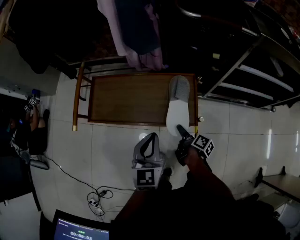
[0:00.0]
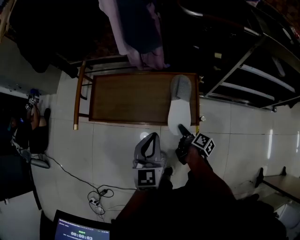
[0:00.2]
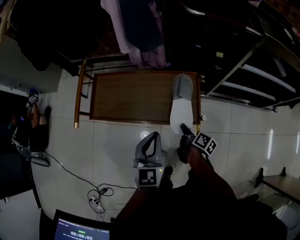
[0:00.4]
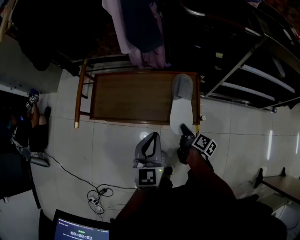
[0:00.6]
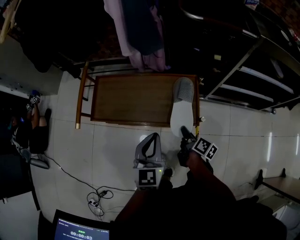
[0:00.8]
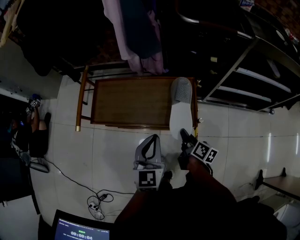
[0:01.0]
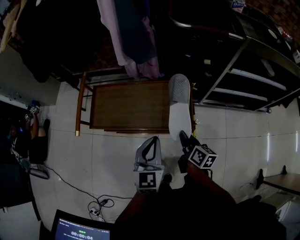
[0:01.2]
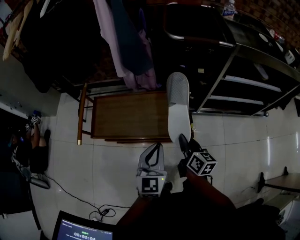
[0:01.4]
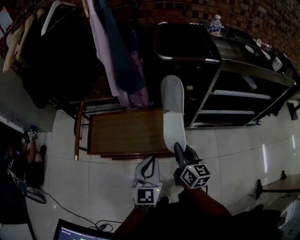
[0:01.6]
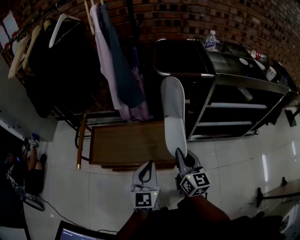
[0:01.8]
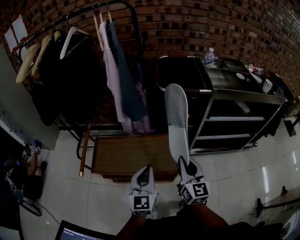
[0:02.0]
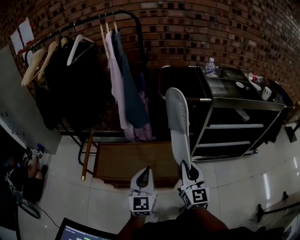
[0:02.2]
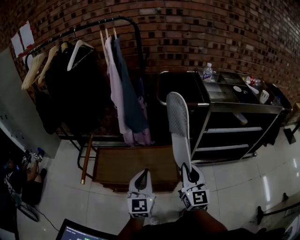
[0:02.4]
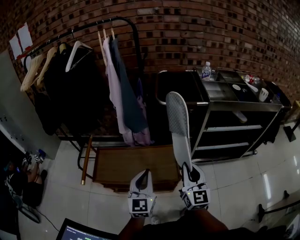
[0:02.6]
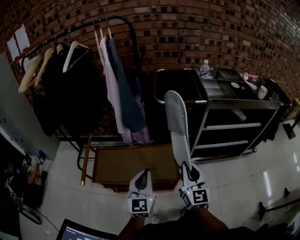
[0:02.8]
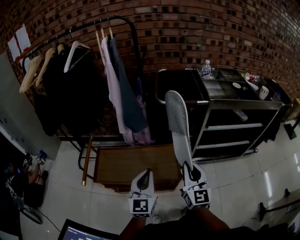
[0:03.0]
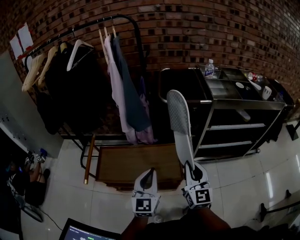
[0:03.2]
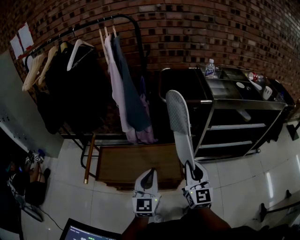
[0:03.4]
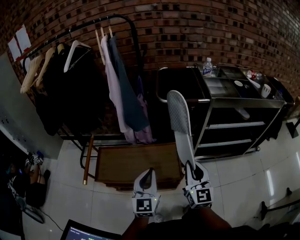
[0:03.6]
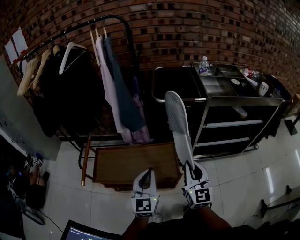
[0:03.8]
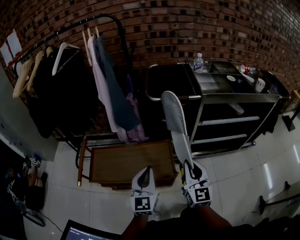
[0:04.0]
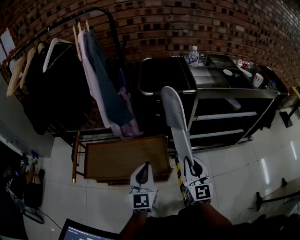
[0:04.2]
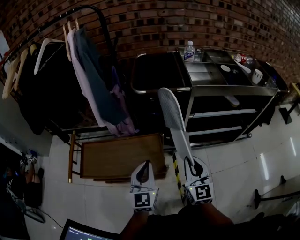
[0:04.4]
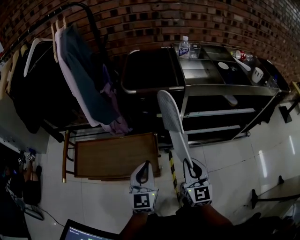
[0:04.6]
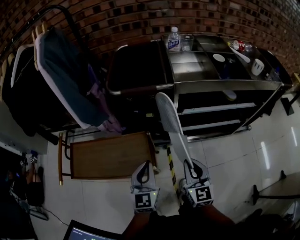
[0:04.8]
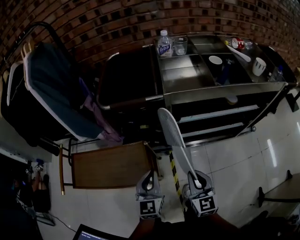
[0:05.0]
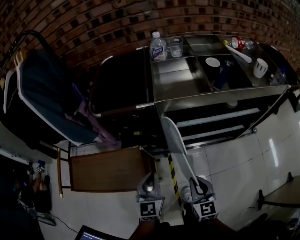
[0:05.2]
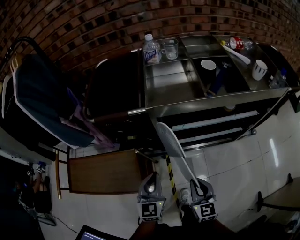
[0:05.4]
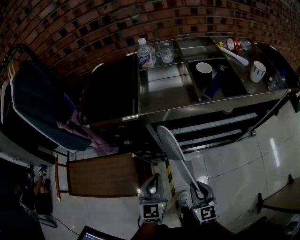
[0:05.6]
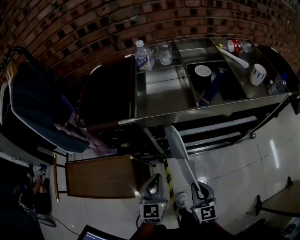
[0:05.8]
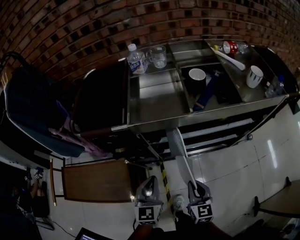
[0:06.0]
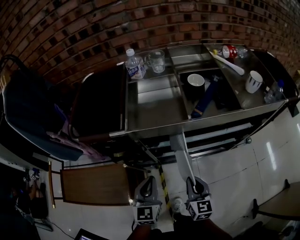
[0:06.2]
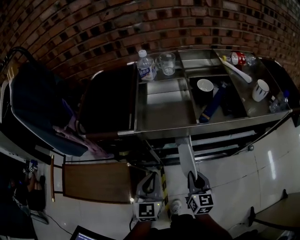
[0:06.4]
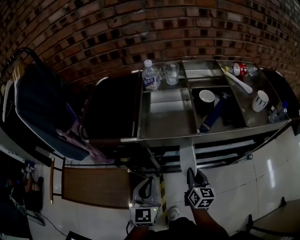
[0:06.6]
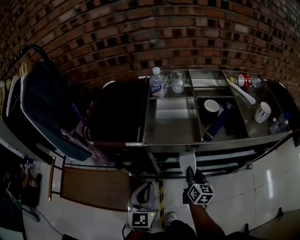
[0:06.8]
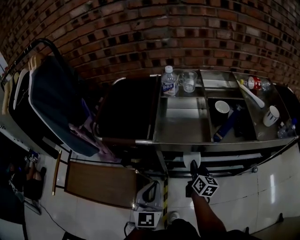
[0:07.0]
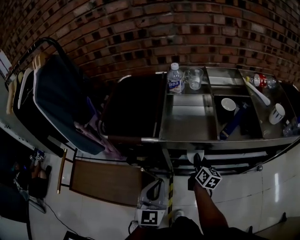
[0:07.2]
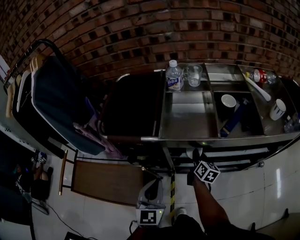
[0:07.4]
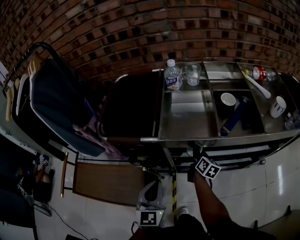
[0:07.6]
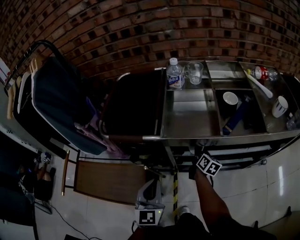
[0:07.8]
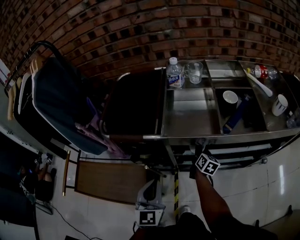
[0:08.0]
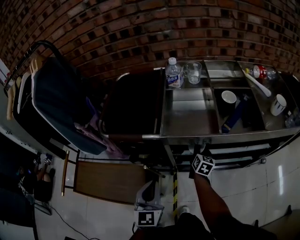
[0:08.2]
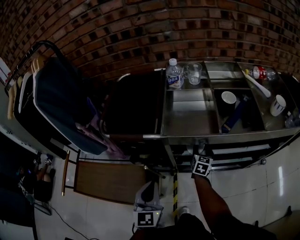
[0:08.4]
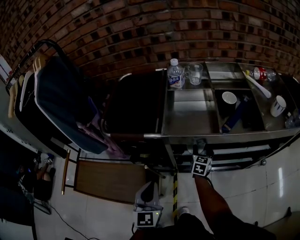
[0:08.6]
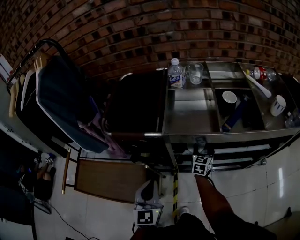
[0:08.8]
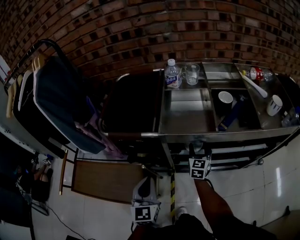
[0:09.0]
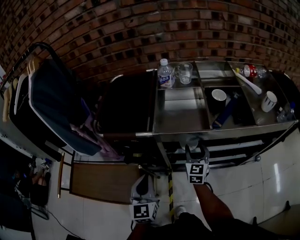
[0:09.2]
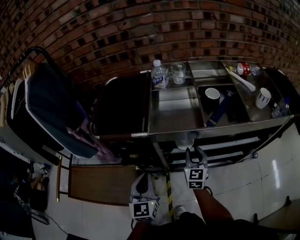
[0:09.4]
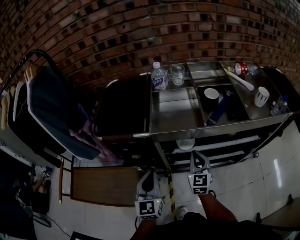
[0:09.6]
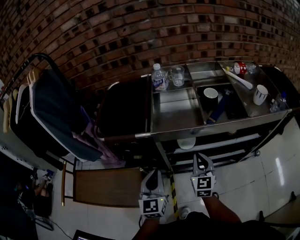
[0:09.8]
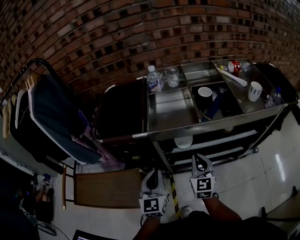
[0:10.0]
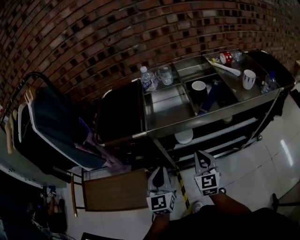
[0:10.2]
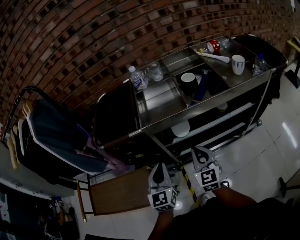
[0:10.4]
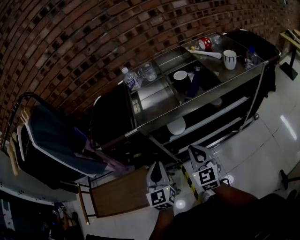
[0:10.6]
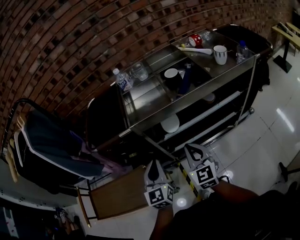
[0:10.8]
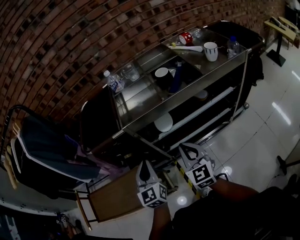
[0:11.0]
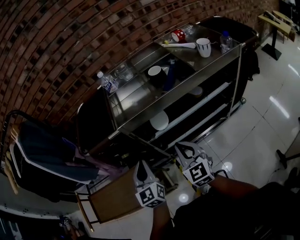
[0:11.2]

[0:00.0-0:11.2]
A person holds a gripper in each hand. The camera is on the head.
0:00.0 to 0:01.6: The left gripper shifts some 5 cm upward. Meanwhile the right gripper is displaced upward by some 25 cm, twists about 50 degrees counterclockwise, seen from behind, and closes its fingers.
0:01.6 to 0:03.2: The right gripper shifts some 15 cm upward, and swivels roughly 30 degrees; the left gripper goes some 10 cm upward.
0:03.2 to 0:04.8: The left gripper moves to the right and forward, about 20 cm, while the right gripper heads to the right and downward, covering approximately 20 cm.
0:04.8 to 0:06.4: The right gripper goes about 25 cm to the right, forward and downward, and swivels some 20 degrees, while the left gripper goes roughly 25 cm to the right and forward.
0:06.4 to 0:08.0: The right gripper is displaced forward by approximately 20 cm, and swivels approximately 20 degrees, while the left gripper heads to the left, covering roughly 5 cm.
0:08.0 to 0:09.6: The right gripper goes roughly 15 cm upward and backward, rotates around the line of its fingers by some 40 degrees, counterclockwise from behind, and opens and closes again.
0:09.6 to 0:11.2: The right gripper shifts roughly 15 cm backward and upward.

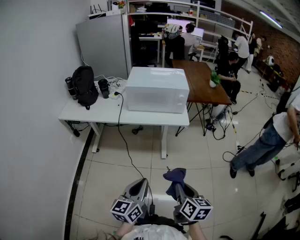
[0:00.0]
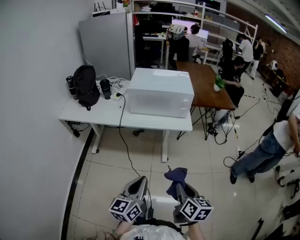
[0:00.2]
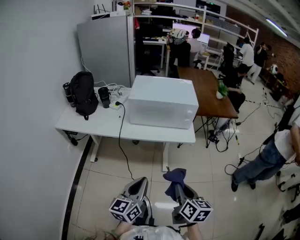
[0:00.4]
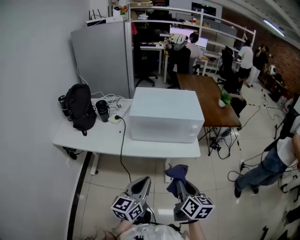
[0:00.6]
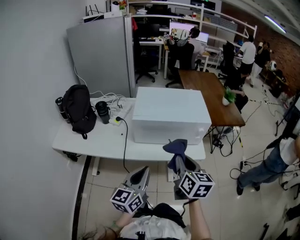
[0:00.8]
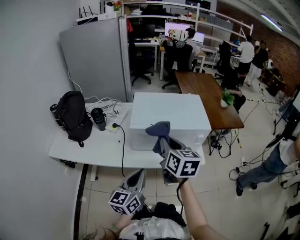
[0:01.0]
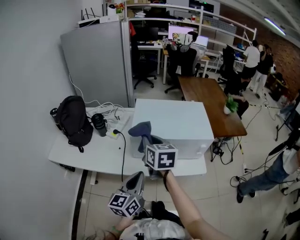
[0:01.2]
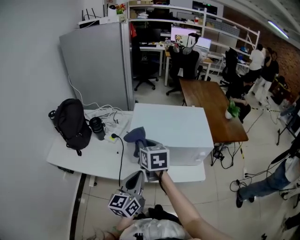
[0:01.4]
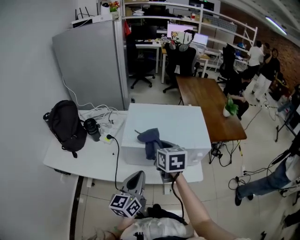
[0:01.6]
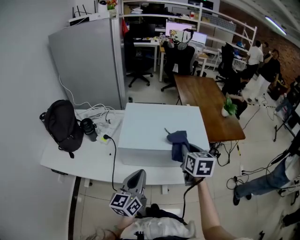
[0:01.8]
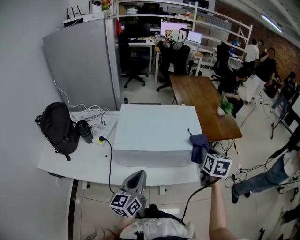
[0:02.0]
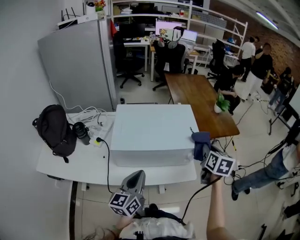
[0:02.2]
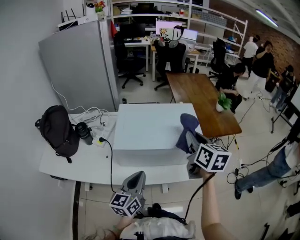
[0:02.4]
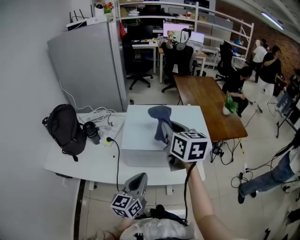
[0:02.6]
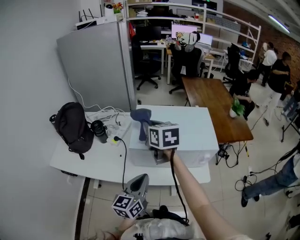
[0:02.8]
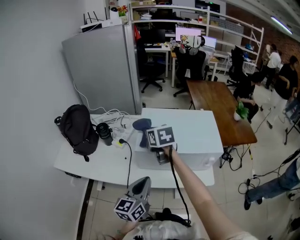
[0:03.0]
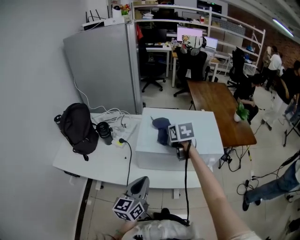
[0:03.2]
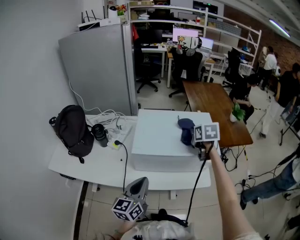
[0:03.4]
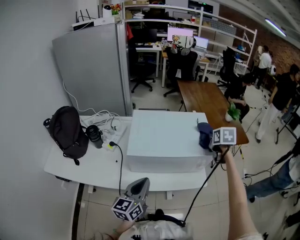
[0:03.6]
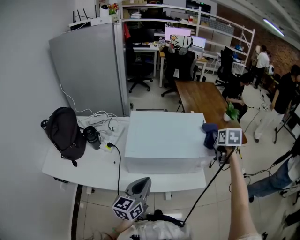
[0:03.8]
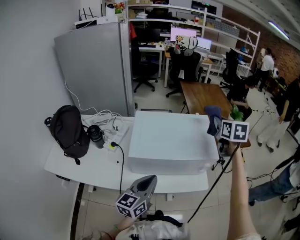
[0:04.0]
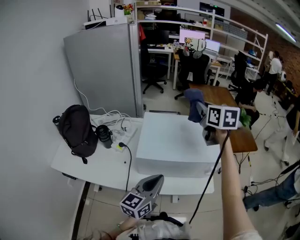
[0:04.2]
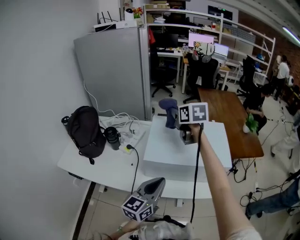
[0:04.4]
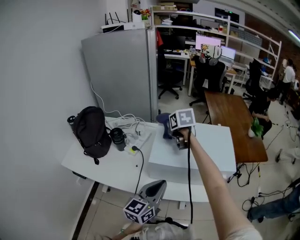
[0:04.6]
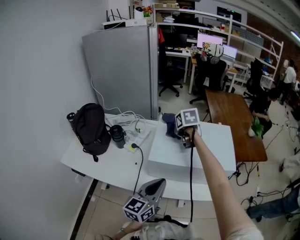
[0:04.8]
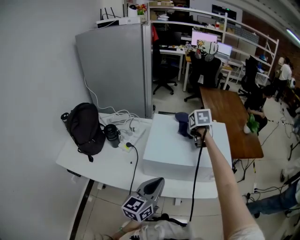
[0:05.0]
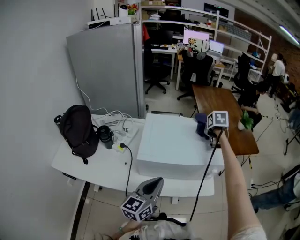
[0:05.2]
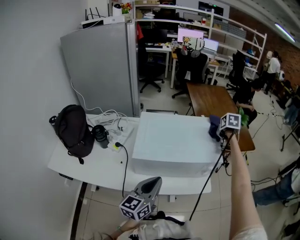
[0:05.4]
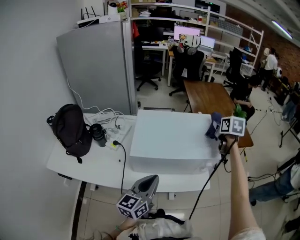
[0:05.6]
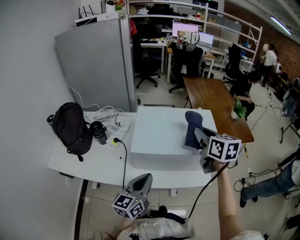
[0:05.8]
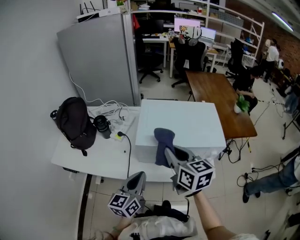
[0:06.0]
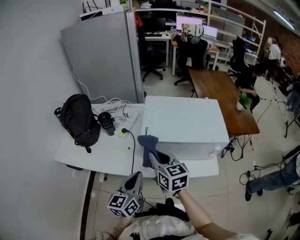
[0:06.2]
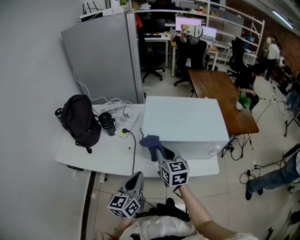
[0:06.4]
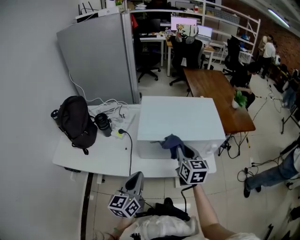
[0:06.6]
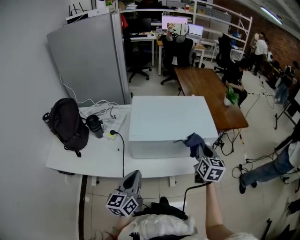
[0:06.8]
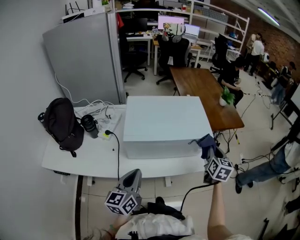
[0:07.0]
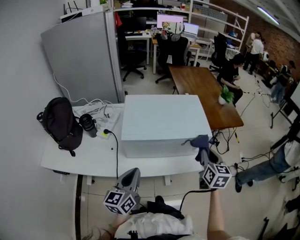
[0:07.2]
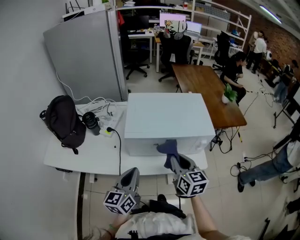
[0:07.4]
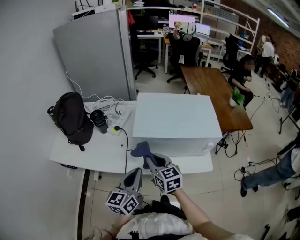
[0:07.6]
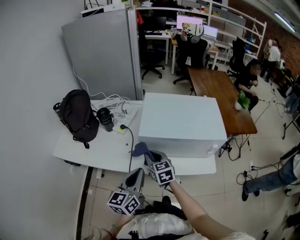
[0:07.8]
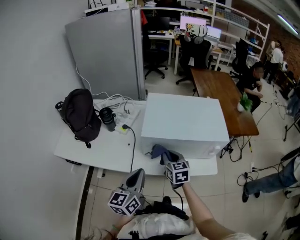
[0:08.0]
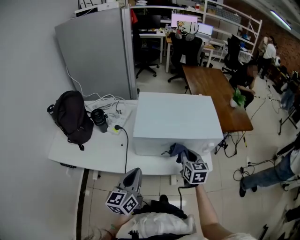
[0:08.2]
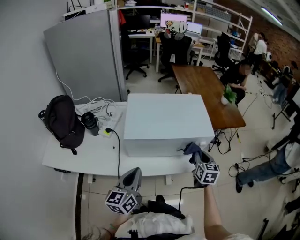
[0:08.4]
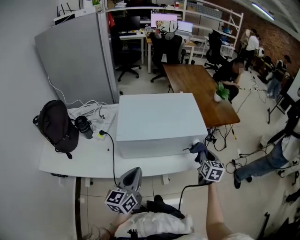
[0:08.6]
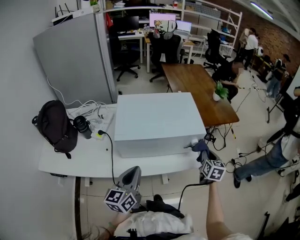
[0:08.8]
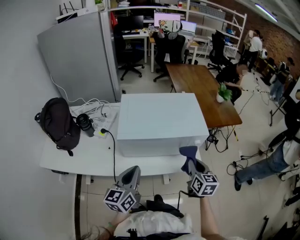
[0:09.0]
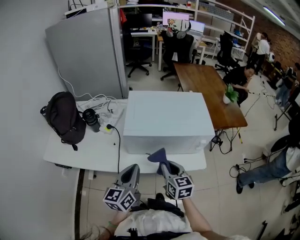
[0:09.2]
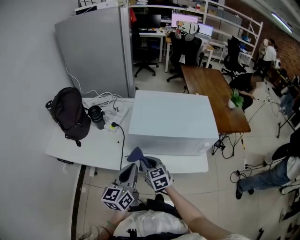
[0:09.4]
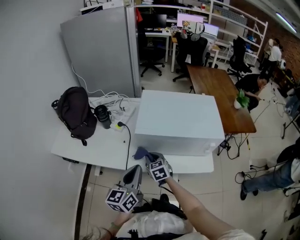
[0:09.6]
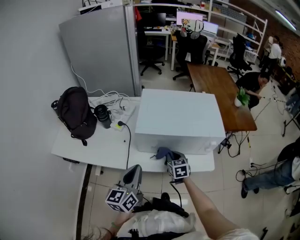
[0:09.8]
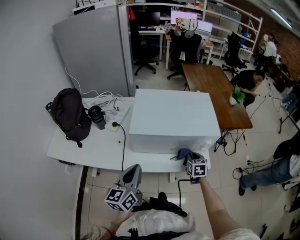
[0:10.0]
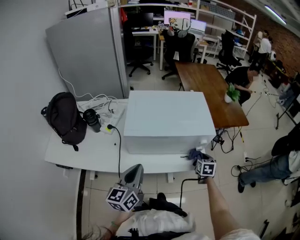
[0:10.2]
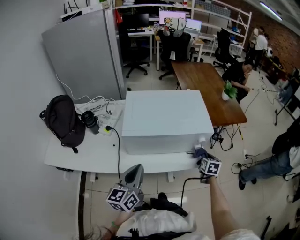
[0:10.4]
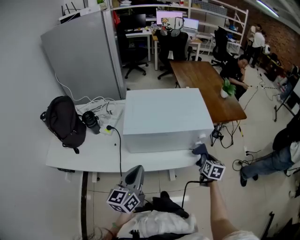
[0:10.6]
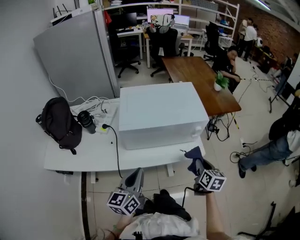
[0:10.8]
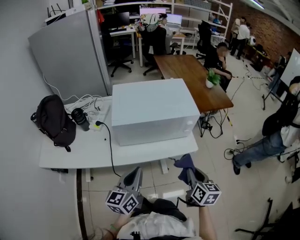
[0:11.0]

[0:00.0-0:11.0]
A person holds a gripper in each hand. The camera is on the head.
0:00.0 to 0:01.6: The two grippers travel together, forward, some 50 cm. The right gripper swivels some 20 degrees.
0:01.6 to 0:03.2: The right gripper goes left and right, some 40 cm each way, reversing 2 times.
0:03.2 to 0:04.8: The right gripper goes left and right, about 40 cm each way, reversing 2 times.
0:04.8 to 0:06.2: The left gripper ends up about 10 cm from where it was. Meanwhile the right gripper goes upward and returns, some 10 cm each way, and tips its fingers upward by approximately 30 degrees.
0:06.2 to 0:07.8: The right gripper is displaced downward by about 10 cm.
0:09.4 to 0:11.0: The right gripper moves some 30 cm, and swivels approximately 50 degrees. Meanwhile the left gripper ends up some 10 cm from where it was.

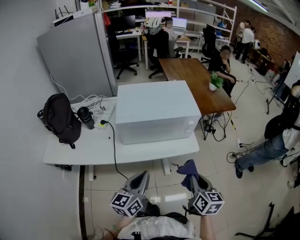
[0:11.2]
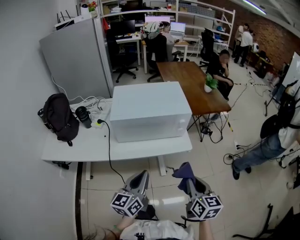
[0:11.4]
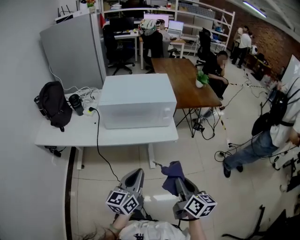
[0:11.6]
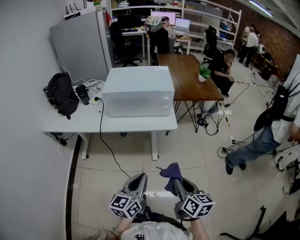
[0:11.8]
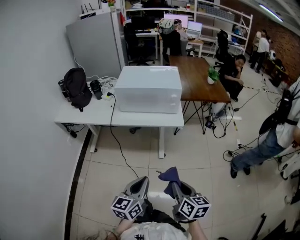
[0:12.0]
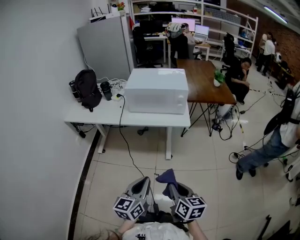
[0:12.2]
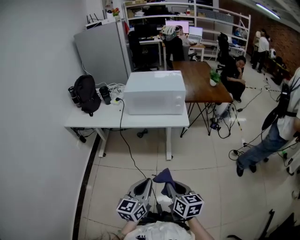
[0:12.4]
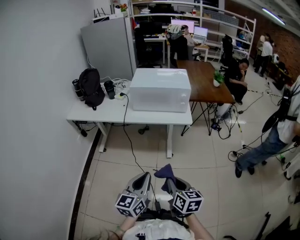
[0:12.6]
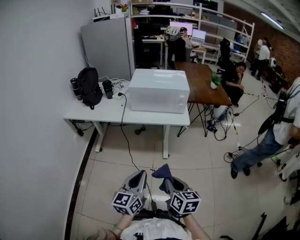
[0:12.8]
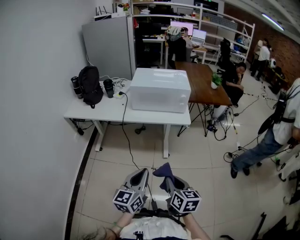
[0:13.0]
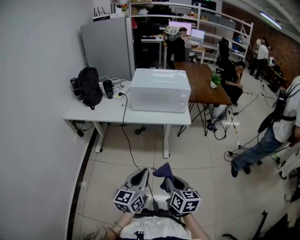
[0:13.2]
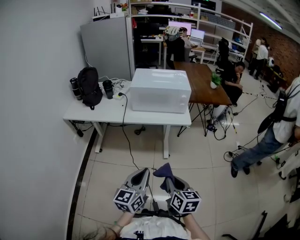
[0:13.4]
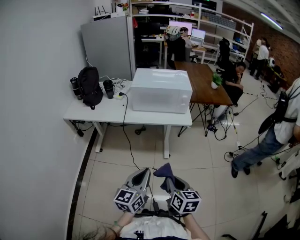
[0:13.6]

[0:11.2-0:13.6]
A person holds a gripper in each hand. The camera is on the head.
0:11.2 to 0:12.4: The grippers both shift backward by approximately 30 cm. The right gripper changes its angle by approximately 30 degrees.
0:12.4 to 0:13.6: The left gripper goes approximately 5 cm to the left.
